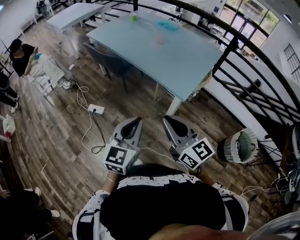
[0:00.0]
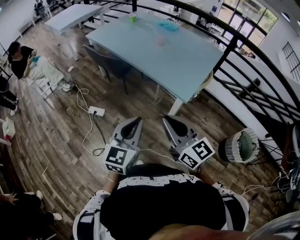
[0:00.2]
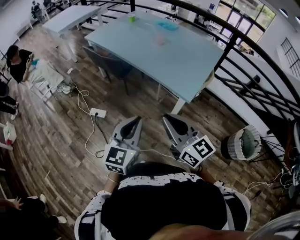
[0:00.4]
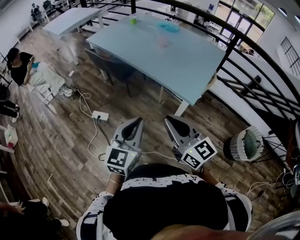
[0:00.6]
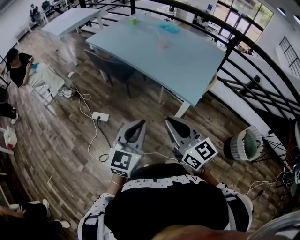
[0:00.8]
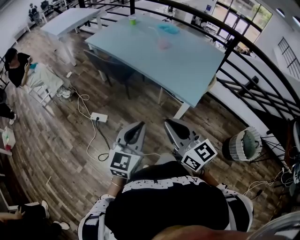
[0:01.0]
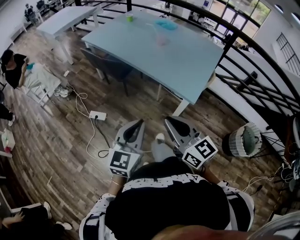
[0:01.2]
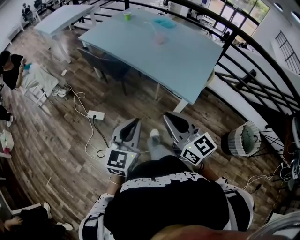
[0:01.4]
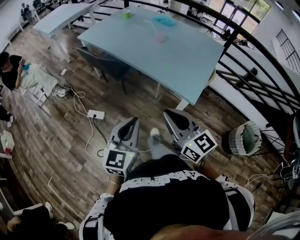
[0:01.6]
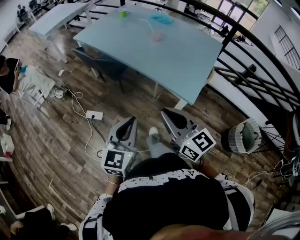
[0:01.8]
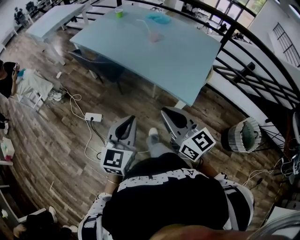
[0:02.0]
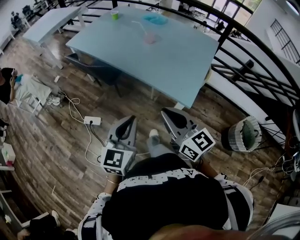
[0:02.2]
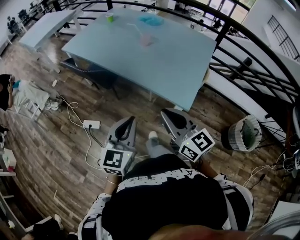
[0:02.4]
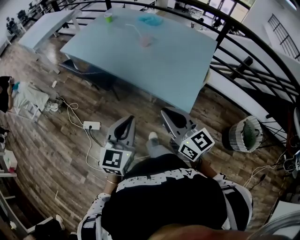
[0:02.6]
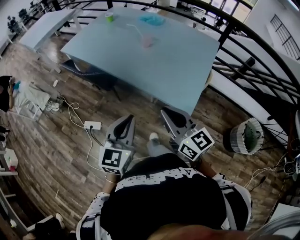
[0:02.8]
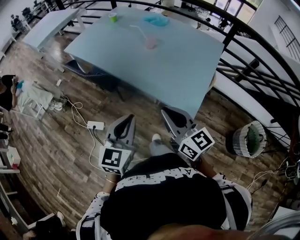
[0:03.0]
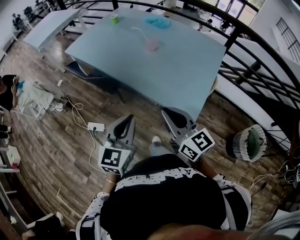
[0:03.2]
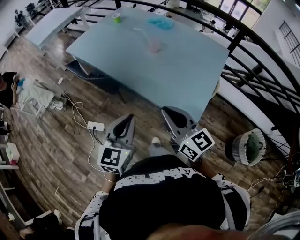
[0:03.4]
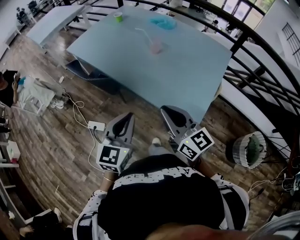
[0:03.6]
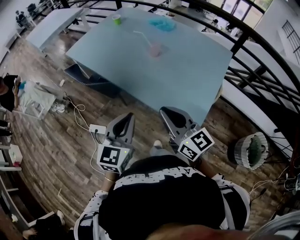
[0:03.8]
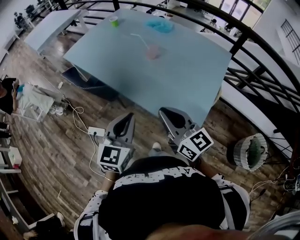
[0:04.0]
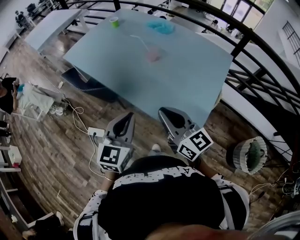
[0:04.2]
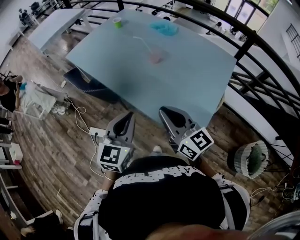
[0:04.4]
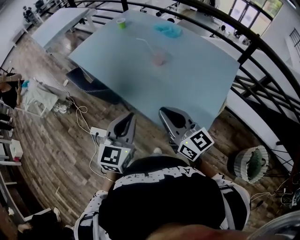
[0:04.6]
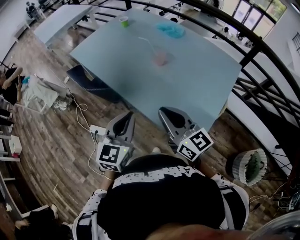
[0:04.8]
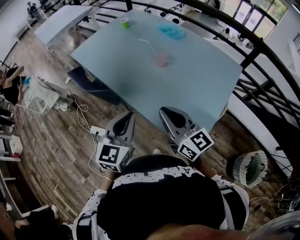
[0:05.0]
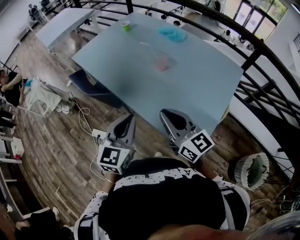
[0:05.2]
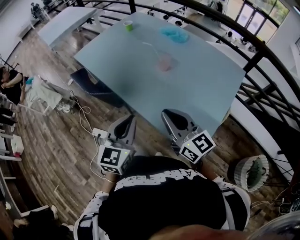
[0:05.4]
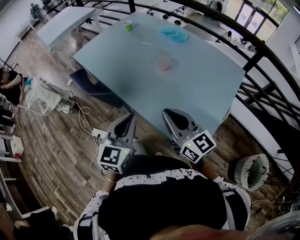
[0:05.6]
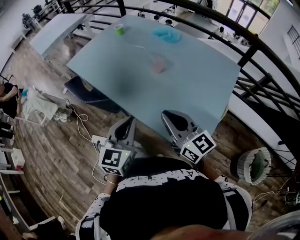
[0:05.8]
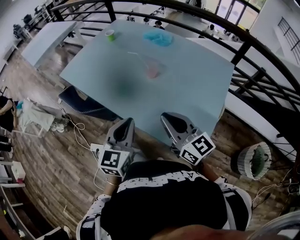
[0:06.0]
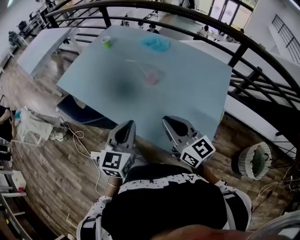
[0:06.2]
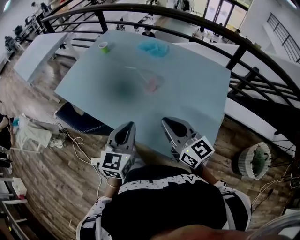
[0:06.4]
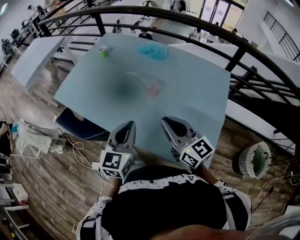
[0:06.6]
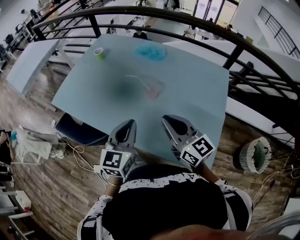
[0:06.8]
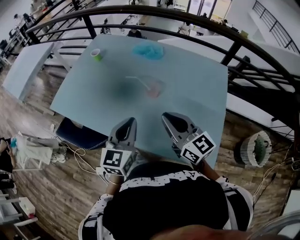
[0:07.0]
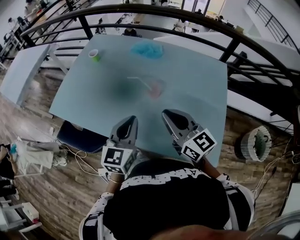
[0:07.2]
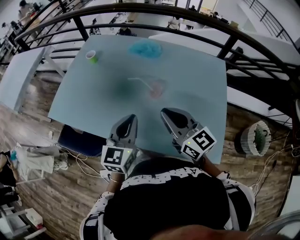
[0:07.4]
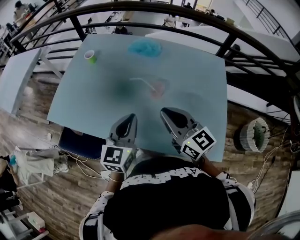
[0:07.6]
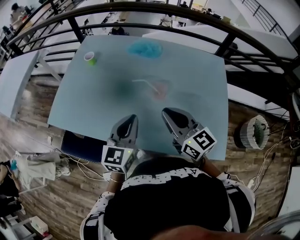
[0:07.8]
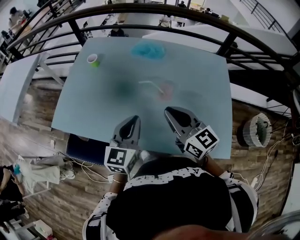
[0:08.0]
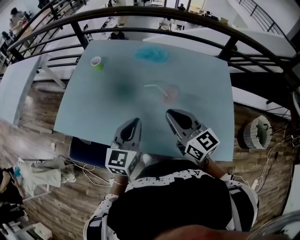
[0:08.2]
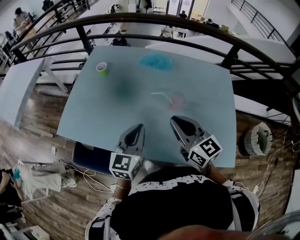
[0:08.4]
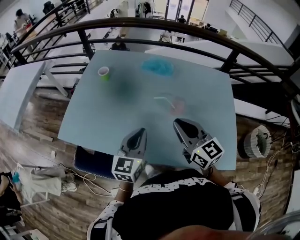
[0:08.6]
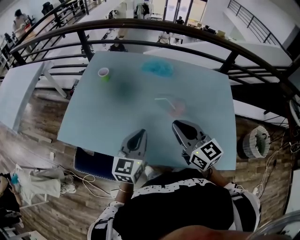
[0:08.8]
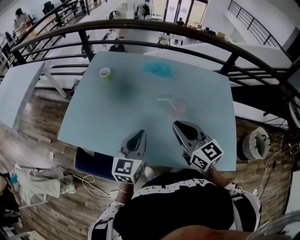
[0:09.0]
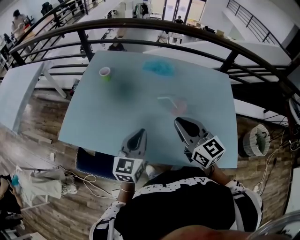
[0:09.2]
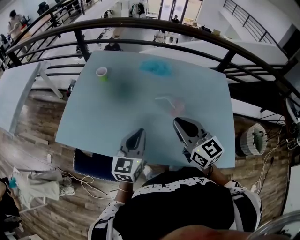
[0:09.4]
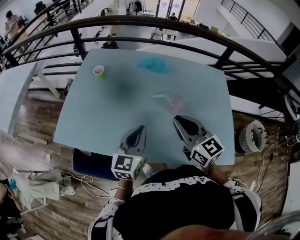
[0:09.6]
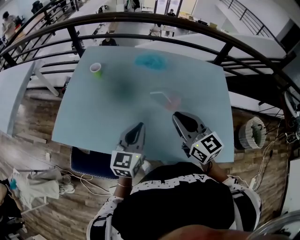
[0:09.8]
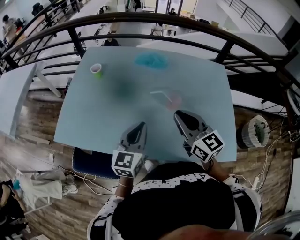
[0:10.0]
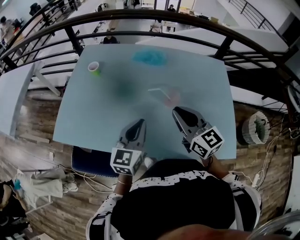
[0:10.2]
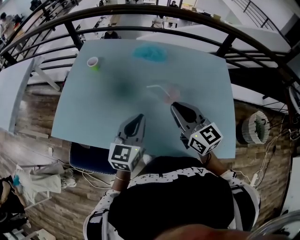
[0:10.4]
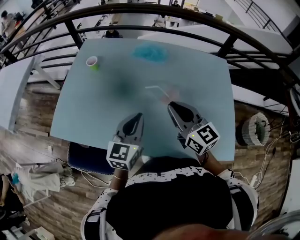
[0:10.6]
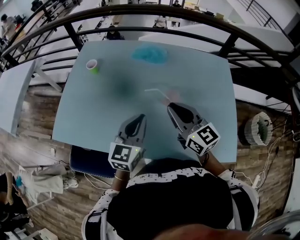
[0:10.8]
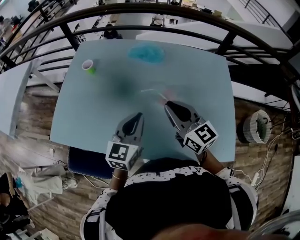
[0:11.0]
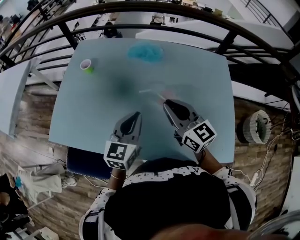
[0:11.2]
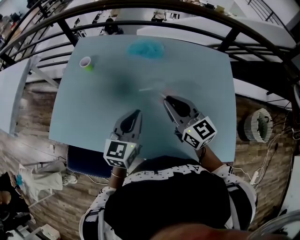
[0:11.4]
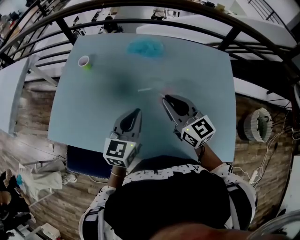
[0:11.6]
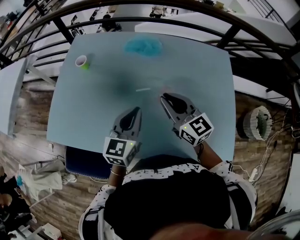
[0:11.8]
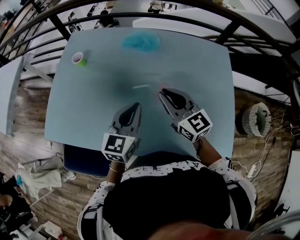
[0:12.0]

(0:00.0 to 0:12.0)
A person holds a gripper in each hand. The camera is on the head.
0:00.0 - 0:01.6: Both grippers move forward and to the left, about 10 cm.
0:01.6 - 0:03.0: The right gripper travels forward and to the right by approximately 15 cm. The left gripper shifts about 15 cm forward.
0:03.0 - 0:04.4: Both grippers travel together forward, about 15 cm.
0:04.4 - 0:06.0: Both grippers move forward, some 5 cm.
0:06.0 - 0:07.6: The two grippers go some 20 cm forward and to the left. The left gripper rotates approximately 20 degrees.
0:07.6 - 0:09.0: Both grippers move to the left, some 10 cm.
0:09.0 - 0:10.4: There are only small adjustments of the grippers.
0:10.4 - 0:12.0: The right gripper heads forward, covering roughly 10 cm, while the left gripper heads forward and to the right, covering about 10 cm.

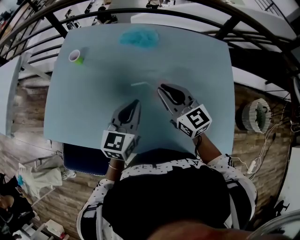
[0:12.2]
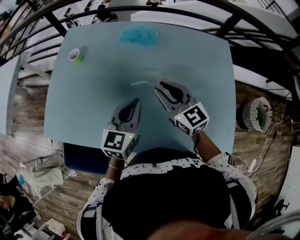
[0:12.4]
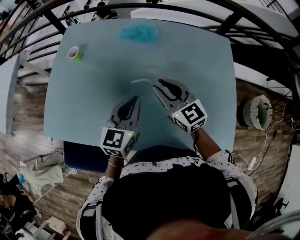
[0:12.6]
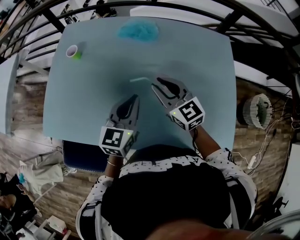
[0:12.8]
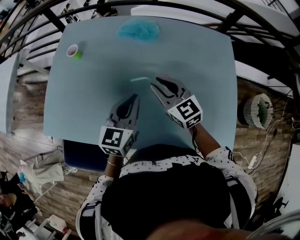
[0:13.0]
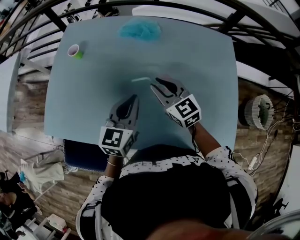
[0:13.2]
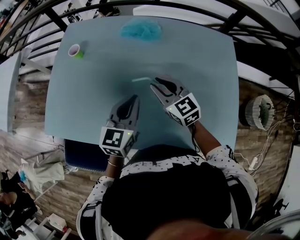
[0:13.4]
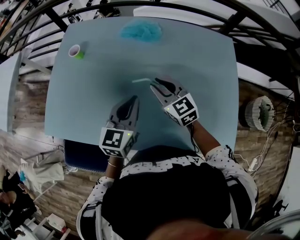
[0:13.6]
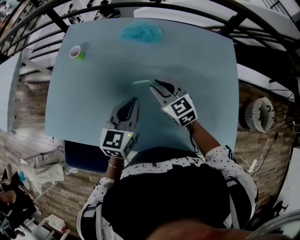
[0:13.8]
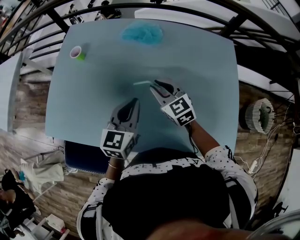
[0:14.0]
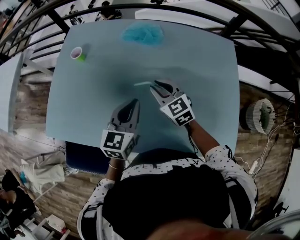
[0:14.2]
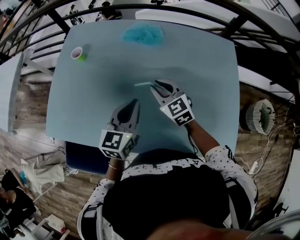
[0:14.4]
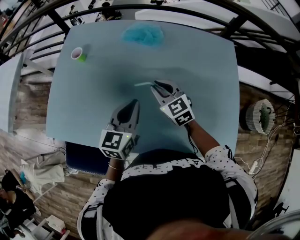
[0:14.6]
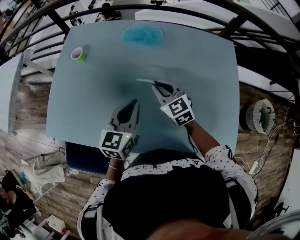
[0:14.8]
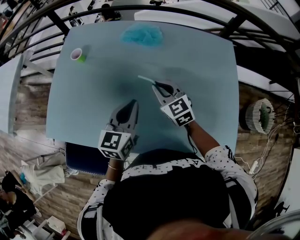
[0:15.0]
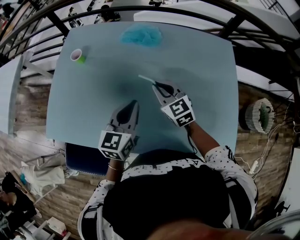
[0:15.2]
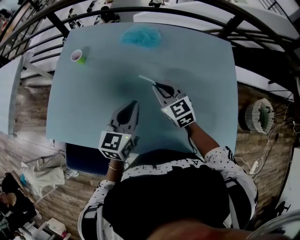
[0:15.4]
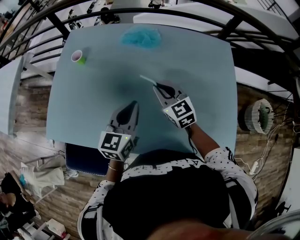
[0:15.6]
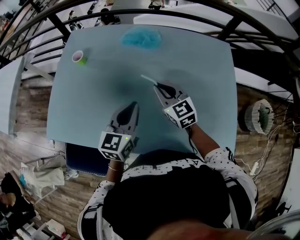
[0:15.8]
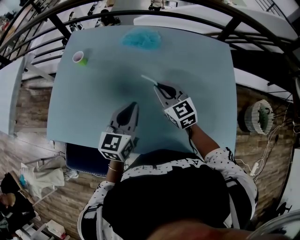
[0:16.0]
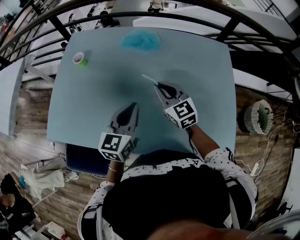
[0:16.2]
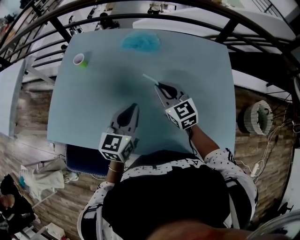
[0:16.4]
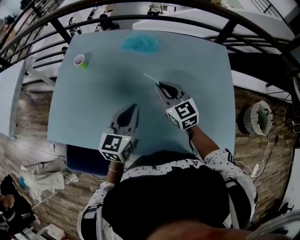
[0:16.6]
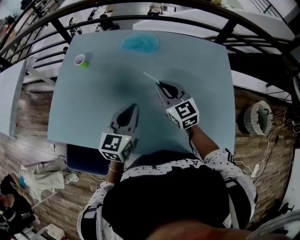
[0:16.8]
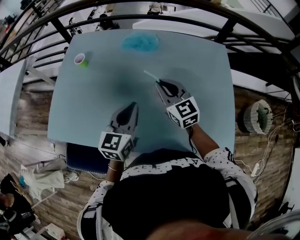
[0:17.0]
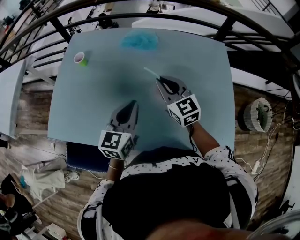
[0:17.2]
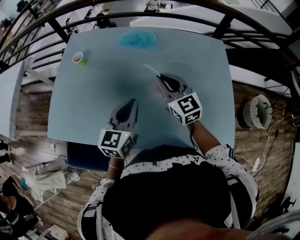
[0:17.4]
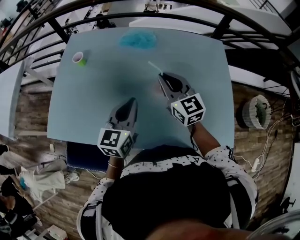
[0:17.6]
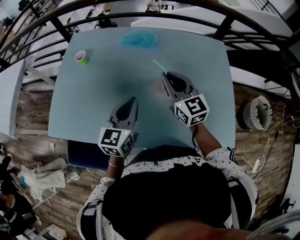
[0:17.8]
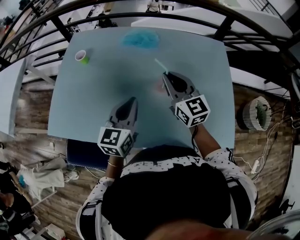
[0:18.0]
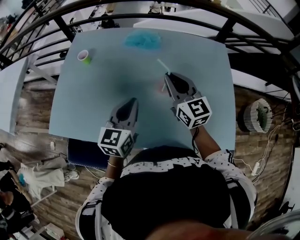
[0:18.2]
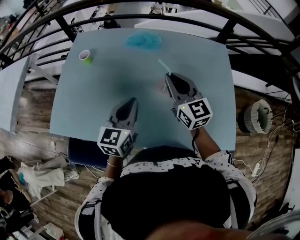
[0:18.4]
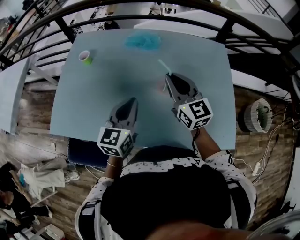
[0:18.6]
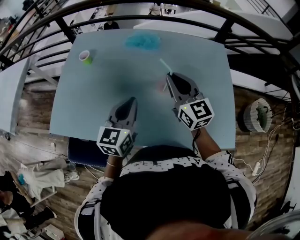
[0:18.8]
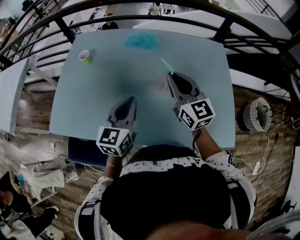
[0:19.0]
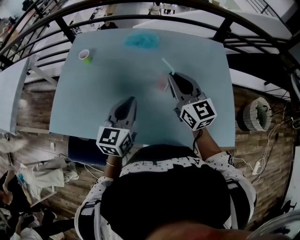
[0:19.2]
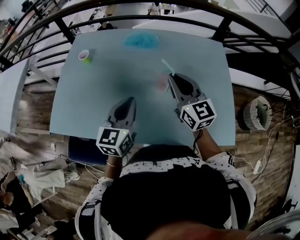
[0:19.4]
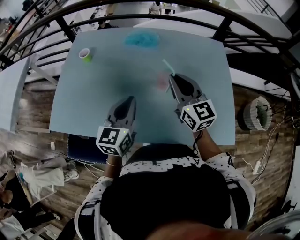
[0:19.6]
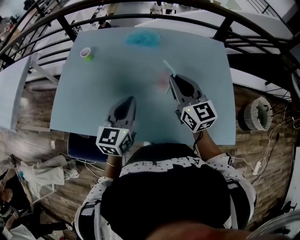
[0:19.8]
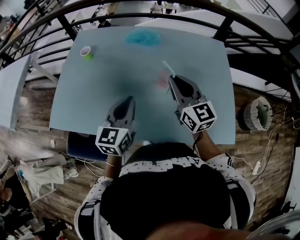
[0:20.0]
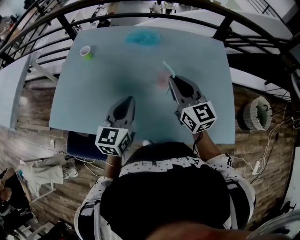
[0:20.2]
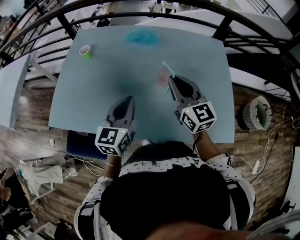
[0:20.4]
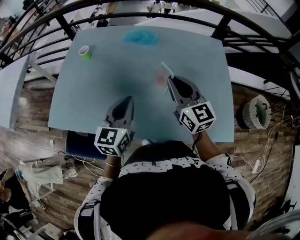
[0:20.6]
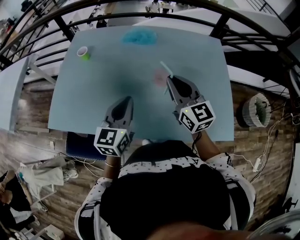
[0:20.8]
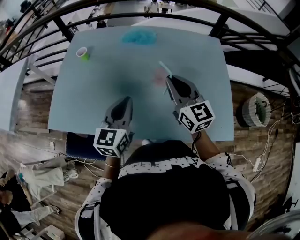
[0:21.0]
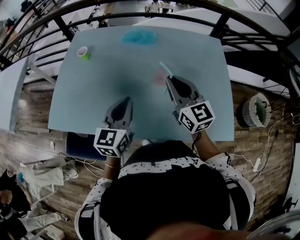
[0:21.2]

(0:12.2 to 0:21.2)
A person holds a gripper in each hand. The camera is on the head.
0:12.2 - 0:13.8: The right gripper shifts approximately 10 cm downward.
0:13.8 - 0:15.2: Neither gripper changes place.
0:15.2 - 0:16.6: The right gripper moves about 5 cm.
0:16.6 - 0:18.2: The right gripper is displaced upward by roughly 5 cm.
0:18.2 - 0:19.8: The right gripper ends up some 5 cm from where it was.
0:19.8 - 0:21.2: The grippers make only small movements.

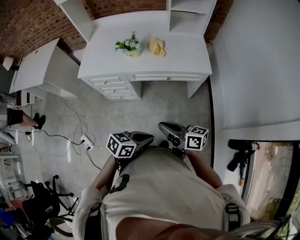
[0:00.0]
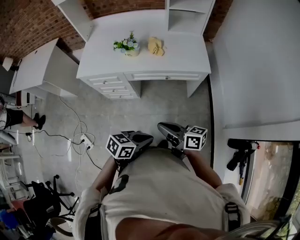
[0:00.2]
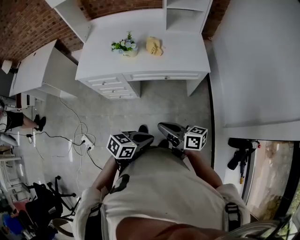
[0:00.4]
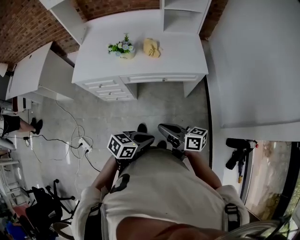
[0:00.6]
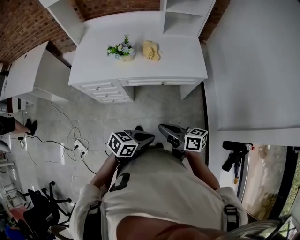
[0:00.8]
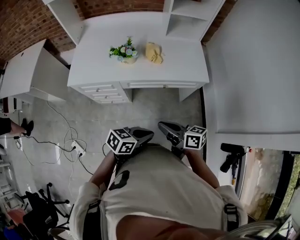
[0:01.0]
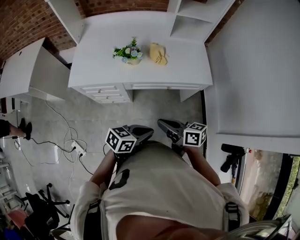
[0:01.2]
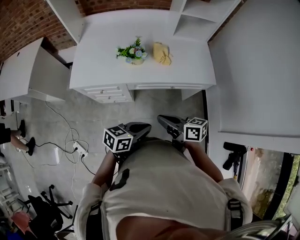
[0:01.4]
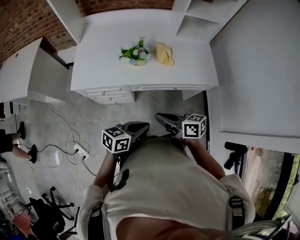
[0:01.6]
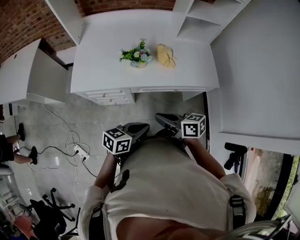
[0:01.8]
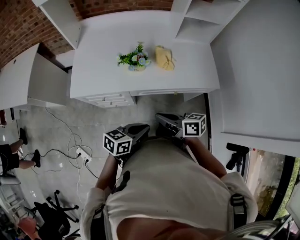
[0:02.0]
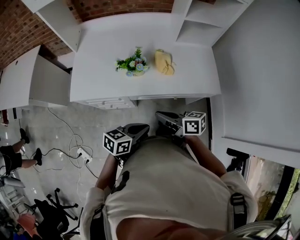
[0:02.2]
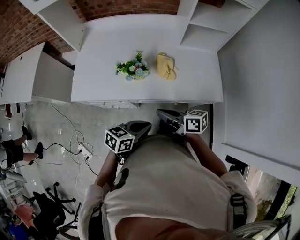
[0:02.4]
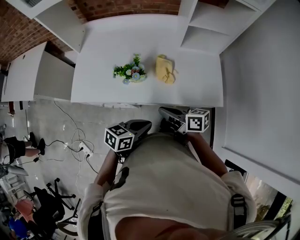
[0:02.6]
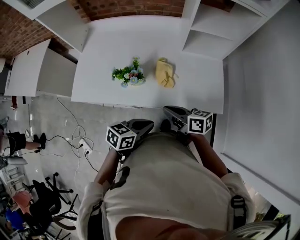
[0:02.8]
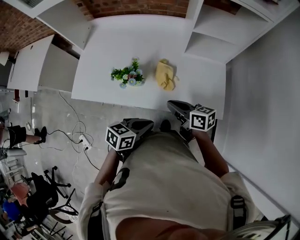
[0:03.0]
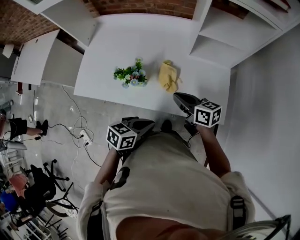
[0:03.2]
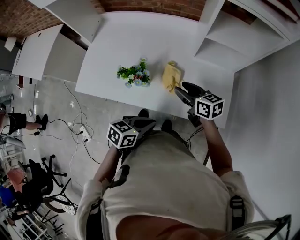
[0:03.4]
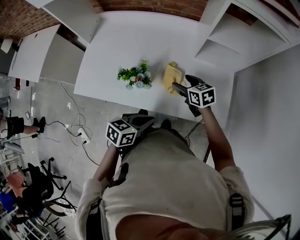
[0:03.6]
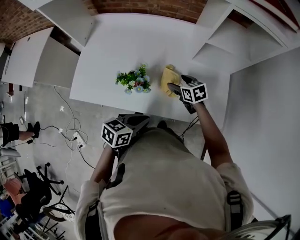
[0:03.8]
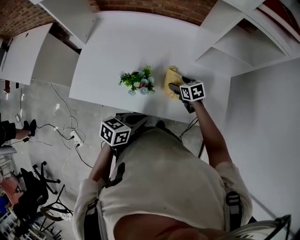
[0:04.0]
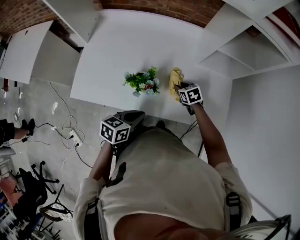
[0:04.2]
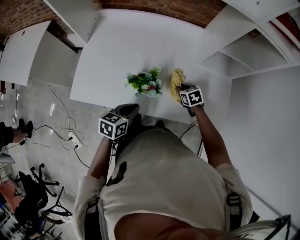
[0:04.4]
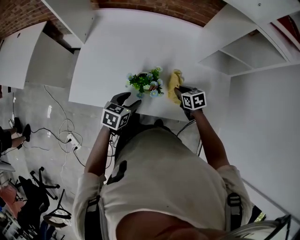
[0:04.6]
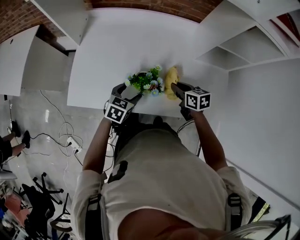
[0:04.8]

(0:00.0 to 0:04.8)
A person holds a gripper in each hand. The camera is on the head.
0:00.0 - 0:01.6: The right gripper ends up roughly 20 cm from where it was. The left gripper shifts by approximately 25 cm.
0:01.6 - 0:03.2: Both grippers move forward and to the right, approximately 25 cm.
0:03.2 - 0:04.8: The right gripper shifts approximately 15 cm to the left, forward and downward, turns by approximately 30 degrees, and opens, then closes again, while the left gripper travels to the left and forward by roughly 25 cm, turns by roughly 30 degrees, and opens its fingers.
